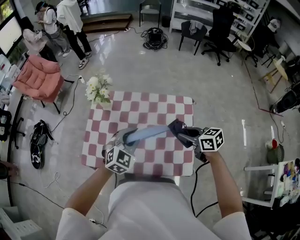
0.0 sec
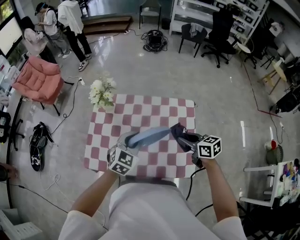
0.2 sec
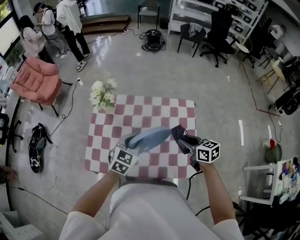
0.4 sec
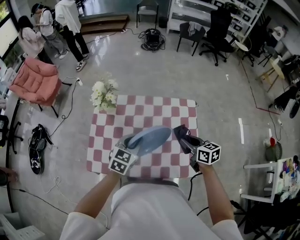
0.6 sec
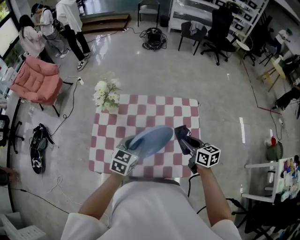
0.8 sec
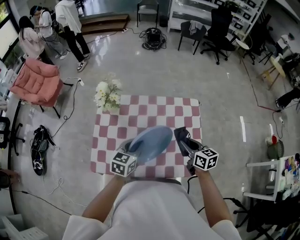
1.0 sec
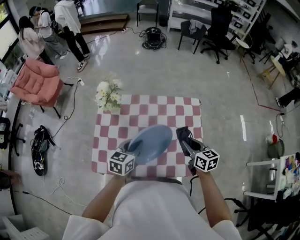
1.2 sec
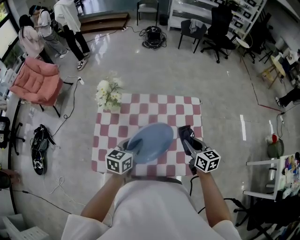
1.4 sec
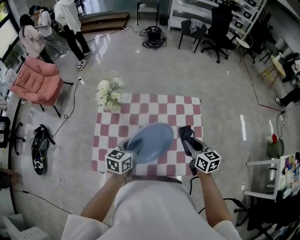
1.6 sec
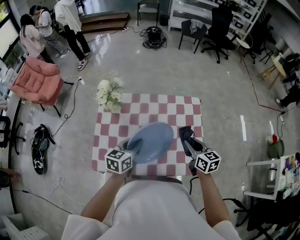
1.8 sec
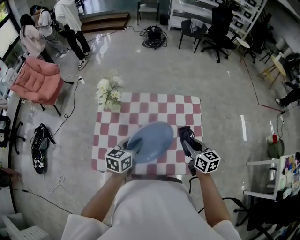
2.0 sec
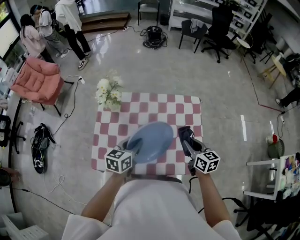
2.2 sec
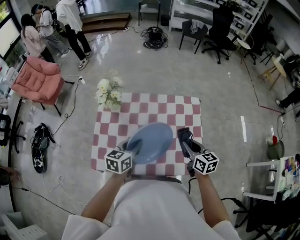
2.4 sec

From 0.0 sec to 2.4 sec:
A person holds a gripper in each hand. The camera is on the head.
From 0.0 sec to 1.2 sec: The left gripper heads to the left and downward, covering approximately 10 cm, and rolls counterclockwise, seen from behind, by about 40 degrees. Meanwhile the right gripper heads to the left, covering some 5 cm, and rotates about 30 degrees.
From 1.2 sec to 2.4 sec: The grippers move only a little.

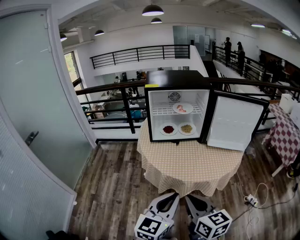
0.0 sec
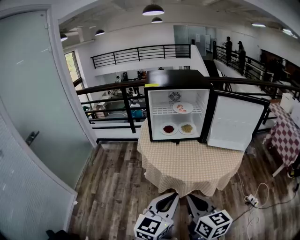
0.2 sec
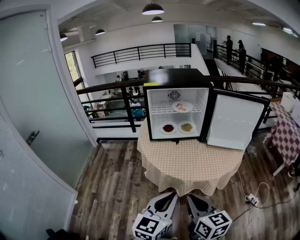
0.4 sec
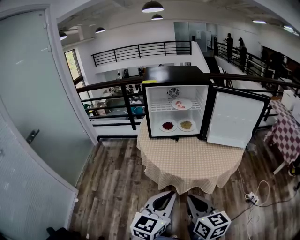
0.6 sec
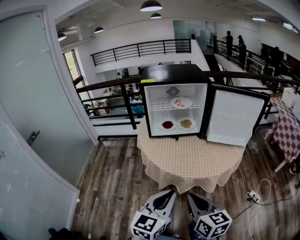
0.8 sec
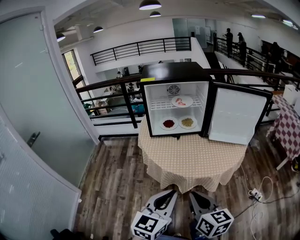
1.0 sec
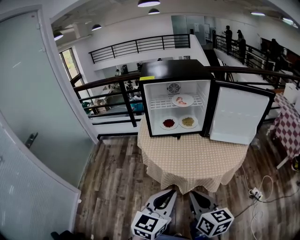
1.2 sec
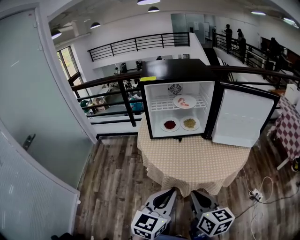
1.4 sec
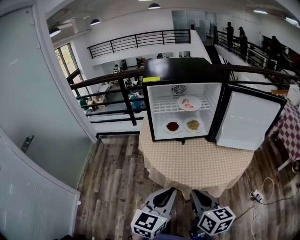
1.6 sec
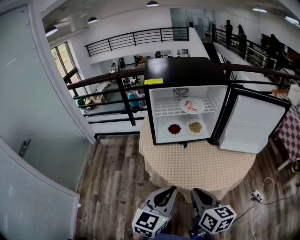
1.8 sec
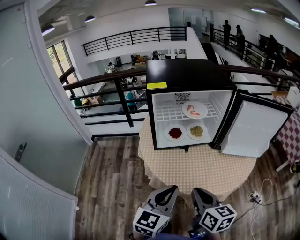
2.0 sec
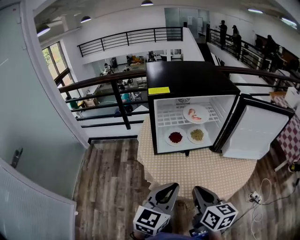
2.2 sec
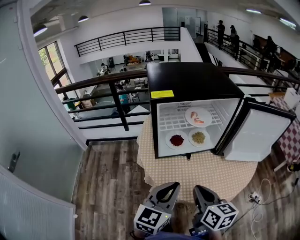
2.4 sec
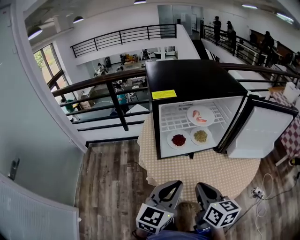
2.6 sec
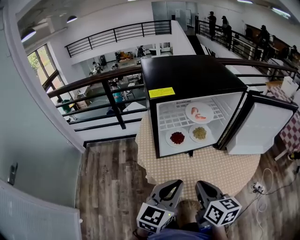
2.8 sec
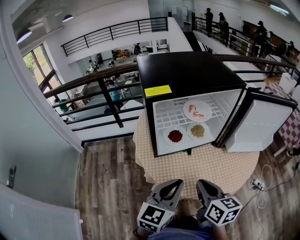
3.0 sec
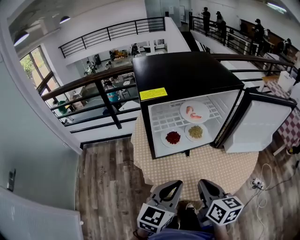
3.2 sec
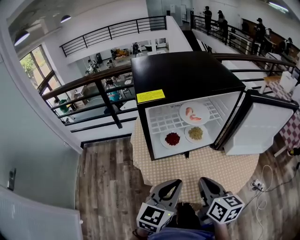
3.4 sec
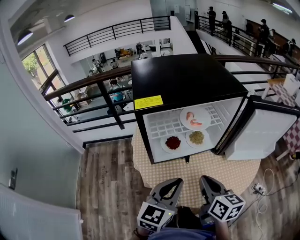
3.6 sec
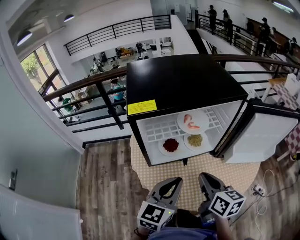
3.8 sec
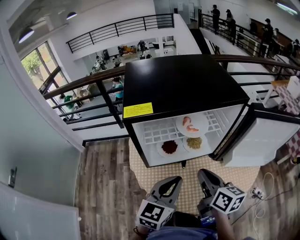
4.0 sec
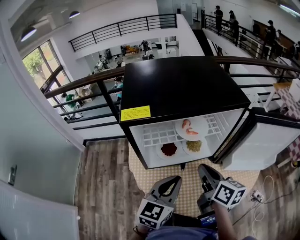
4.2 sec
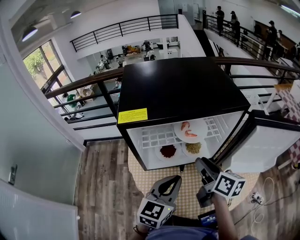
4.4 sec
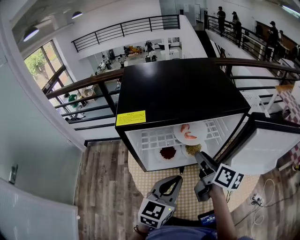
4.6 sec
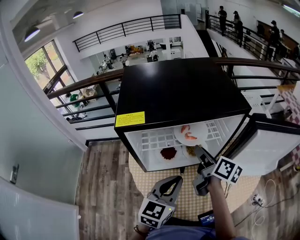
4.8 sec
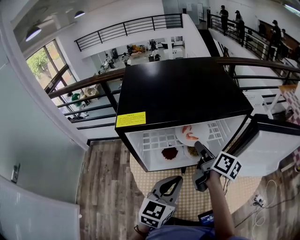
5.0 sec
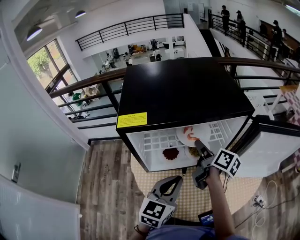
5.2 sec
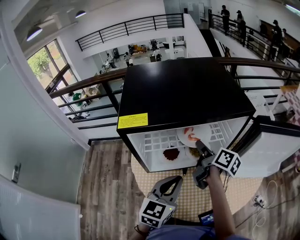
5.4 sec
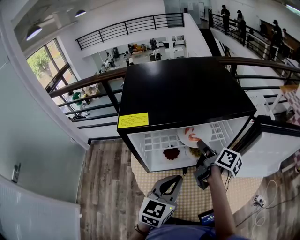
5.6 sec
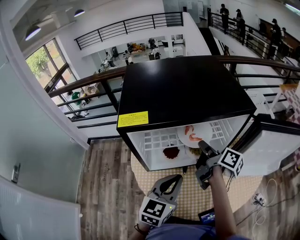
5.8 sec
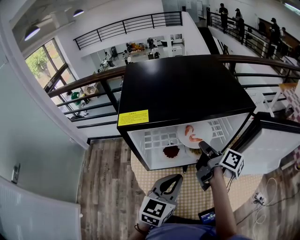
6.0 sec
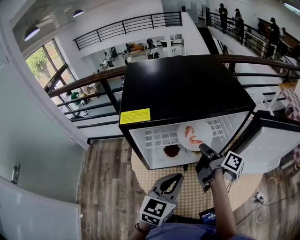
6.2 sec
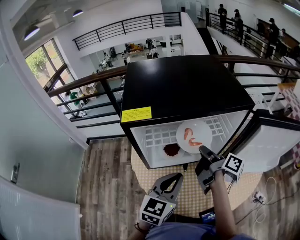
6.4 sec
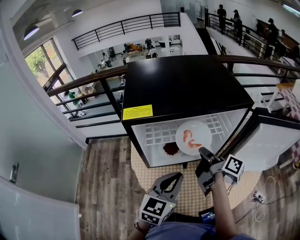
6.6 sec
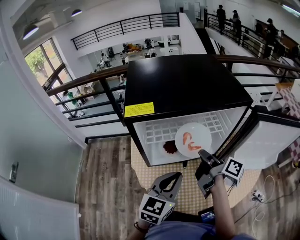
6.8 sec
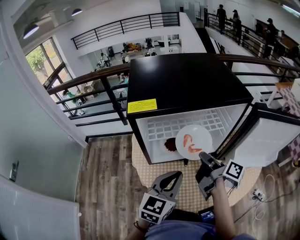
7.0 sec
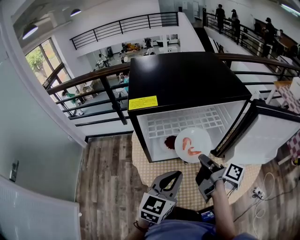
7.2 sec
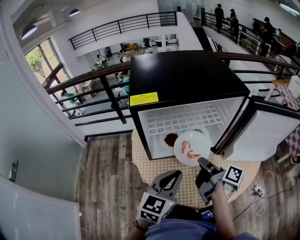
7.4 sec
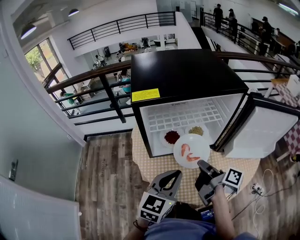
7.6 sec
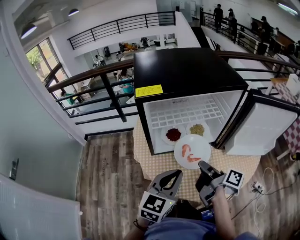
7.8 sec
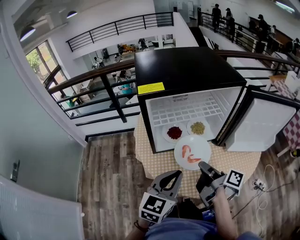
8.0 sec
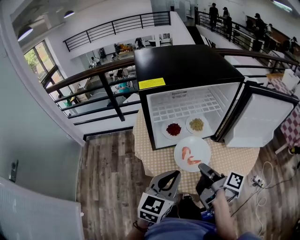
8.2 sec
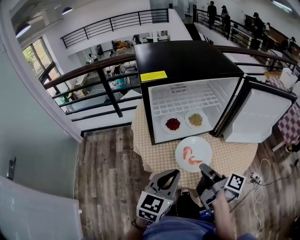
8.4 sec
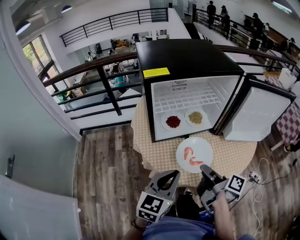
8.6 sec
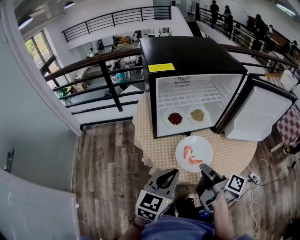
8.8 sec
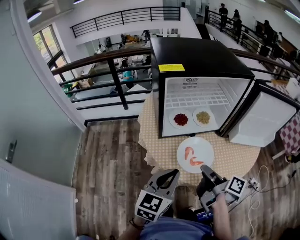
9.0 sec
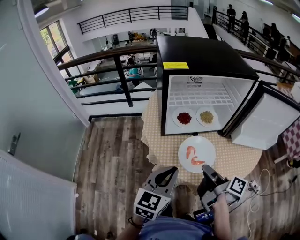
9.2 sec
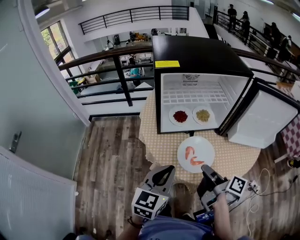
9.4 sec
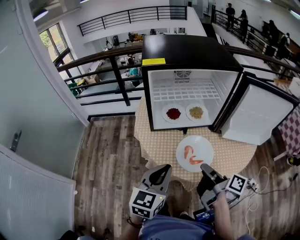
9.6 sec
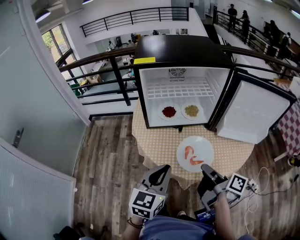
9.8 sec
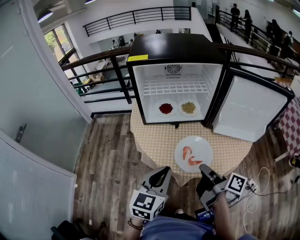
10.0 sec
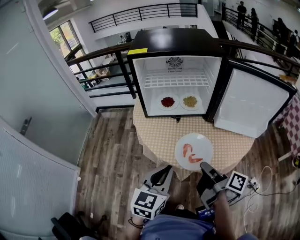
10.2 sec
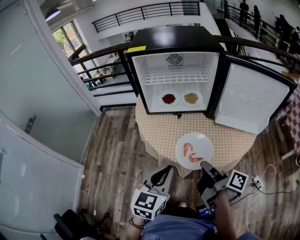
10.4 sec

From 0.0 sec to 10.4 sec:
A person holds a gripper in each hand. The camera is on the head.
From 0.0 sec to 1.4 sec: The two grippers go approximately 5 cm forward.
From 1.4 sec to 3.0 sec: The two grippers go some 25 cm forward and to the left.
From 3.0 sec to 4.4 sec: The left gripper is displaced forward and to the right by some 15 cm; the right gripper shifts some 20 cm forward, and opens up.
From 4.4 sec to 6.0 sec: The right gripper moves forward, approximately 10 cm, and changes its angle by roughly 30 degrees.
From 6.0 sec to 7.4 sec: The right gripper heads backward, covering approximately 15 cm, while the left gripper heads backward, covering some 5 cm.
From 7.4 sec to 9.0 sec: The left gripper moves backward and to the left, about 15 cm, while the right gripper heads backward, covering some 15 cm.
From 9.0 sec to 10.4 sec: The two grippers go some 20 cm to the right and backward.

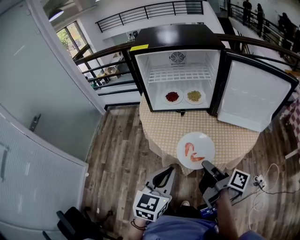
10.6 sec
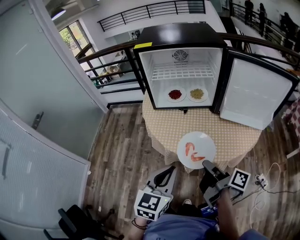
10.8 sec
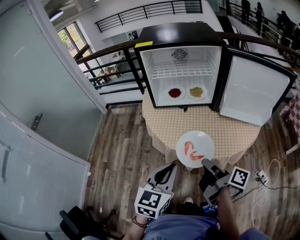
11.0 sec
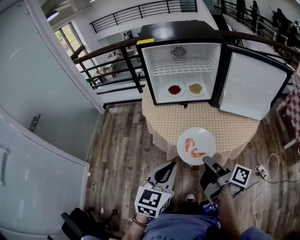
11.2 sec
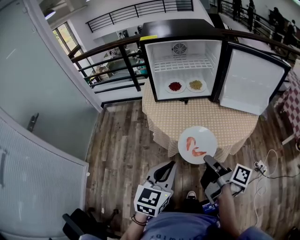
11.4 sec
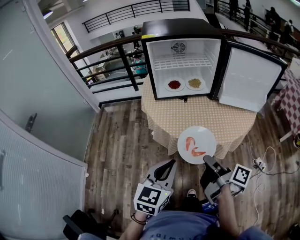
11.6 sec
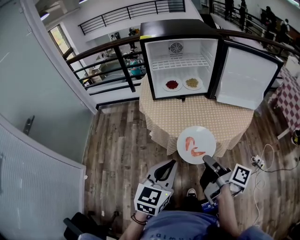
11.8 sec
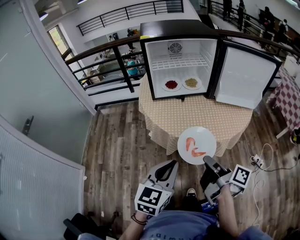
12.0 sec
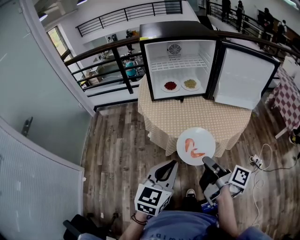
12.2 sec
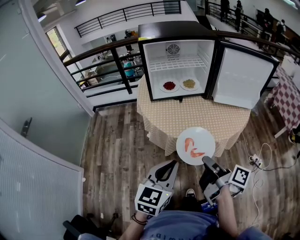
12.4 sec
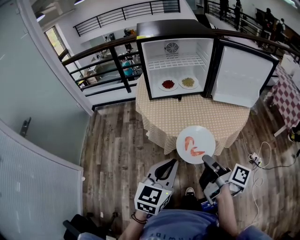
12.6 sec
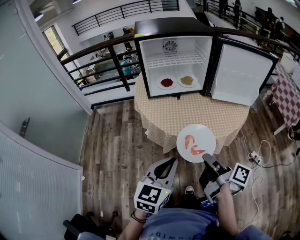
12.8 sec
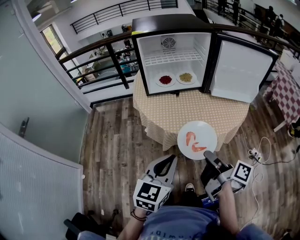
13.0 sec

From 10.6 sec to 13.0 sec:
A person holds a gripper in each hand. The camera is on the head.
From 10.6 sec to 11.8 sec: The left gripper is displaced to the left and backward by approximately 10 cm, while the right gripper travels backward and to the left by some 15 cm.
From 11.8 sec to 13.0 sec: The grippers move only a little.

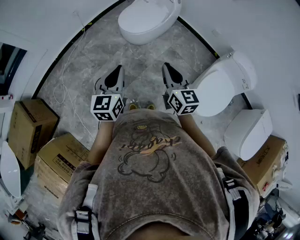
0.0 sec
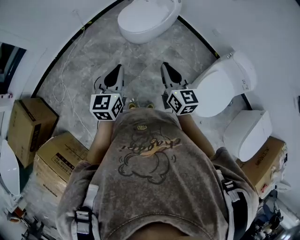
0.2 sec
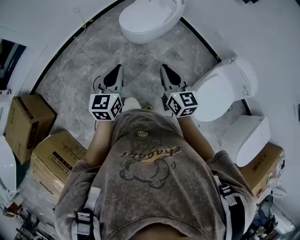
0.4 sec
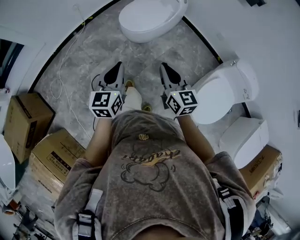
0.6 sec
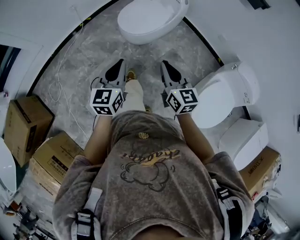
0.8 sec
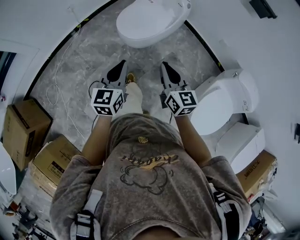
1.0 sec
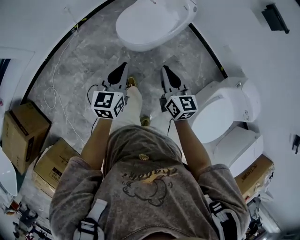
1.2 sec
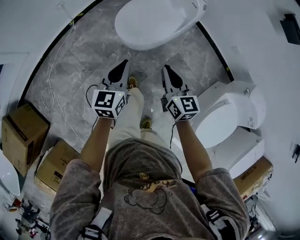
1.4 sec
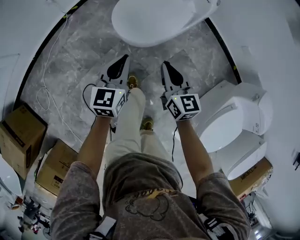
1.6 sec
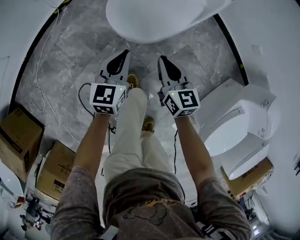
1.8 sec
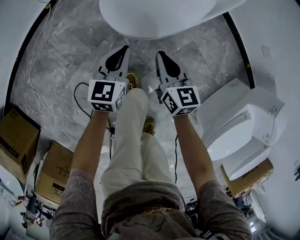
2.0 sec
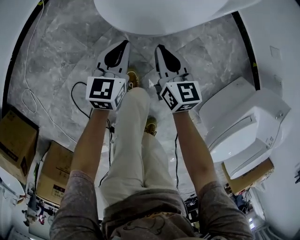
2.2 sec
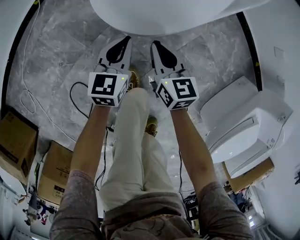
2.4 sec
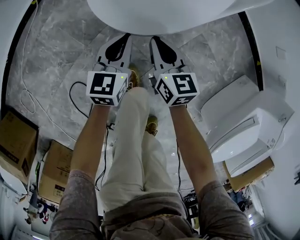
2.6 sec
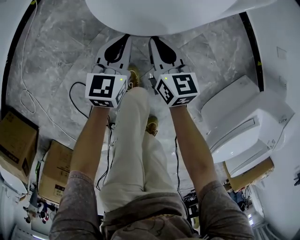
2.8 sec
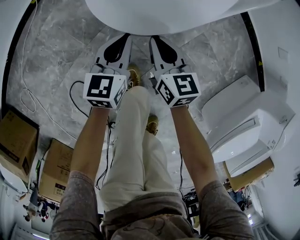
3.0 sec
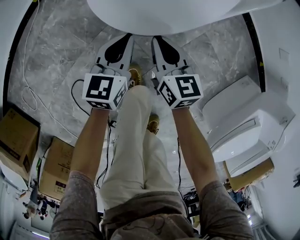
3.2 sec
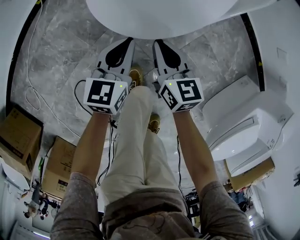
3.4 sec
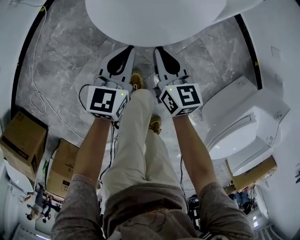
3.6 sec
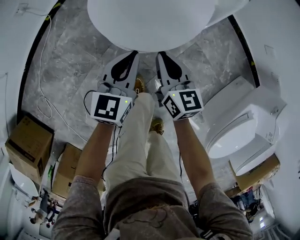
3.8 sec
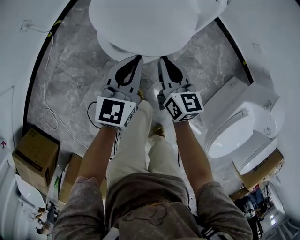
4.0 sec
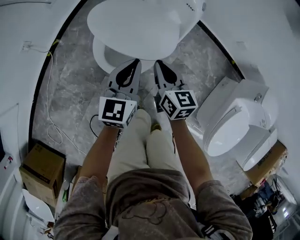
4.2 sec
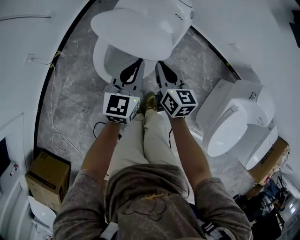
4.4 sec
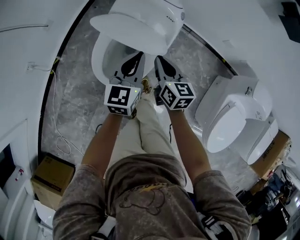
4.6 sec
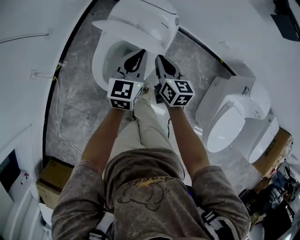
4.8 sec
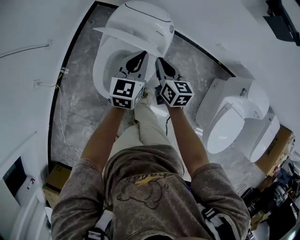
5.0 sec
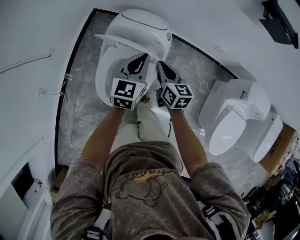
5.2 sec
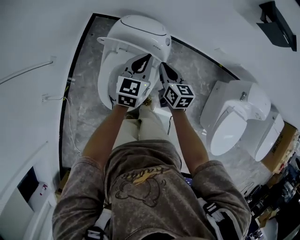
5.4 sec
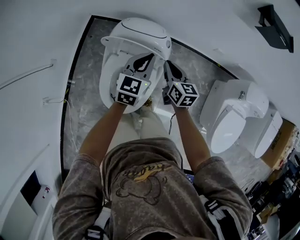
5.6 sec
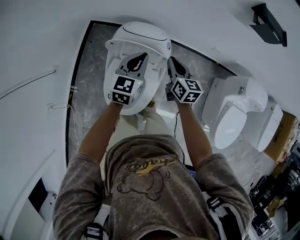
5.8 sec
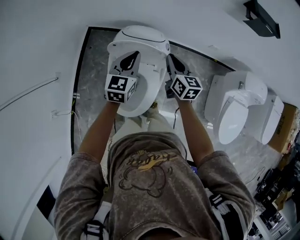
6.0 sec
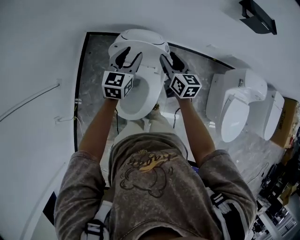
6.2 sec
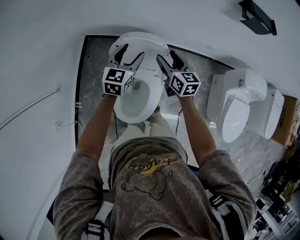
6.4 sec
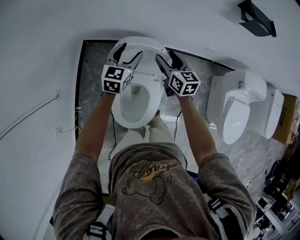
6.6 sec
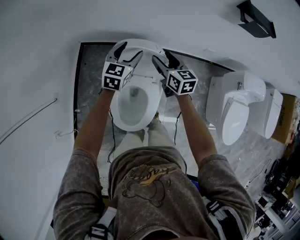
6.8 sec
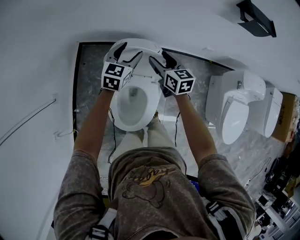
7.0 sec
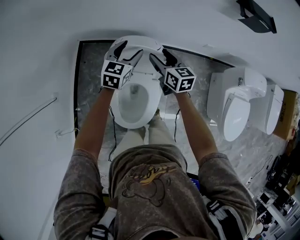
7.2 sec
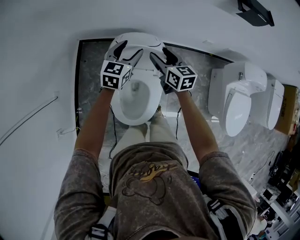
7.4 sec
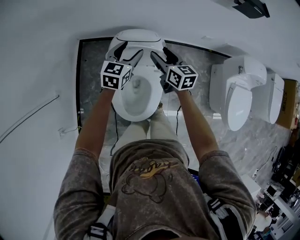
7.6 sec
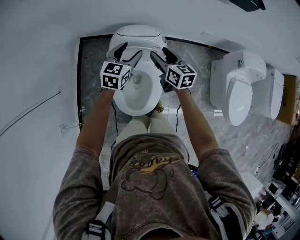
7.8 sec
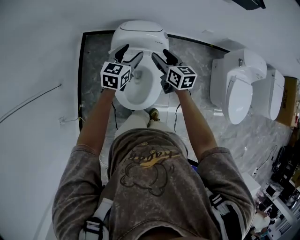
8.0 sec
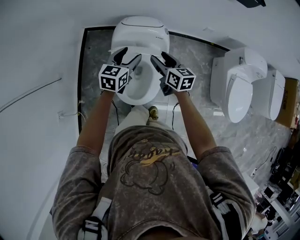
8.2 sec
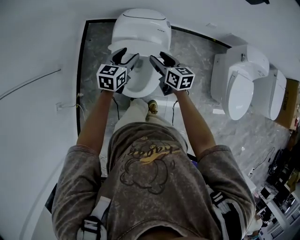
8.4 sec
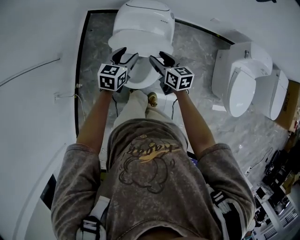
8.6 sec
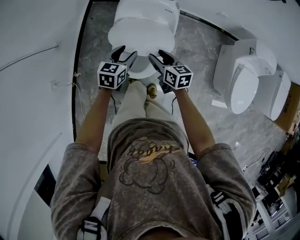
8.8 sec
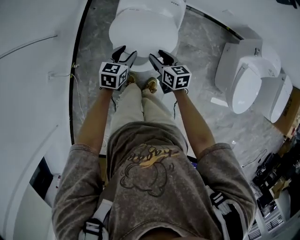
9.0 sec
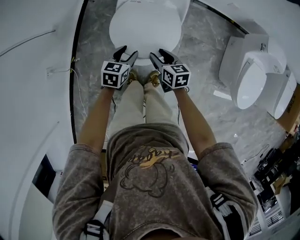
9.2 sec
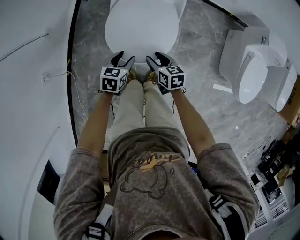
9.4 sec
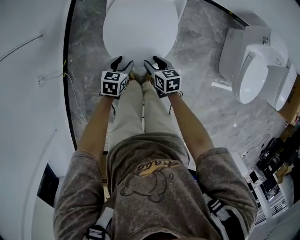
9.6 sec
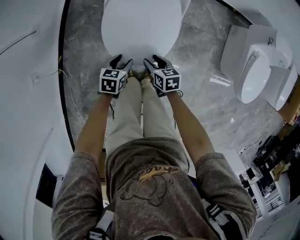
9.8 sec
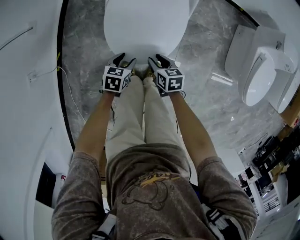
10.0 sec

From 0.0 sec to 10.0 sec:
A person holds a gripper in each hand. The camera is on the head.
From 0.0 sec to 1.4 sec: The two grippers go roughly 40 cm forward and downward.
From 1.4 sec to 2.8 sec: The two grippers go about 35 cm downward.
From 2.8 sec to 4.2 sec: The two grippers go roughly 25 cm upward.
From 4.2 sec to 5.8 sec: The right gripper is displaced forward, upward and to the right by roughly 30 cm, and swivels approximately 20 degrees; the left gripper heads forward and upward, covering about 30 cm, and turns by roughly 30 degrees.
From 5.8 sec to 7.2 sec: The right gripper moves forward and to the left, about 10 cm, and opens; the left gripper heads forward, covering some 10 cm, and opens its fingers.
From 7.2 sec to 8.6 sec: Both grippers travel together backward, roughly 25 cm.
From 8.6 sec to 10.0 sec: The grippers both shift downward and backward by about 35 cm. The left gripper turns by roughly 30 degrees, while the right gripper swivels some 30 degrees.
